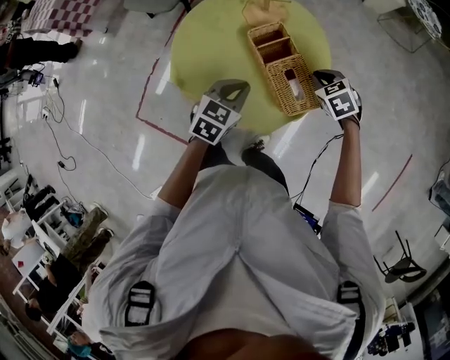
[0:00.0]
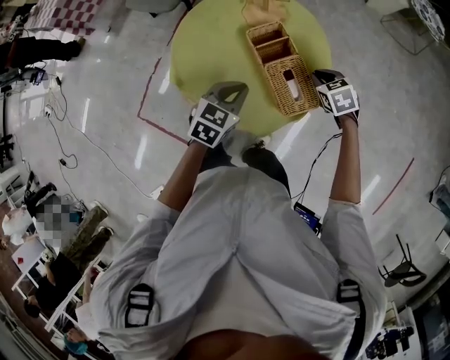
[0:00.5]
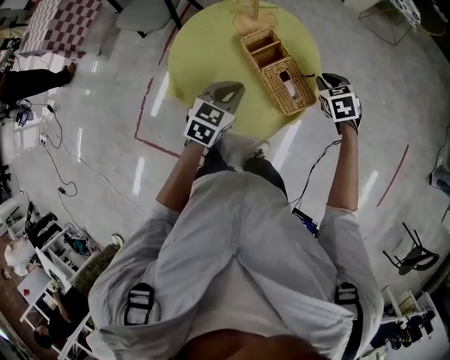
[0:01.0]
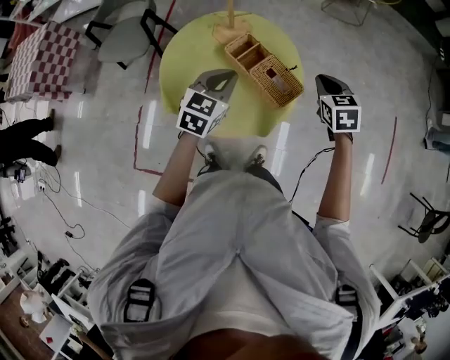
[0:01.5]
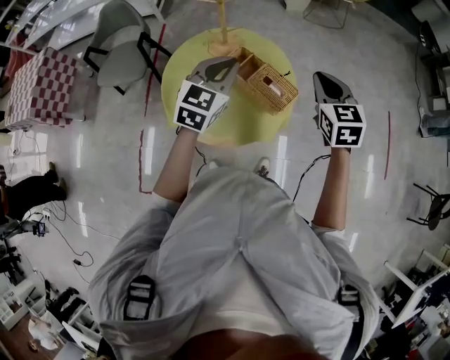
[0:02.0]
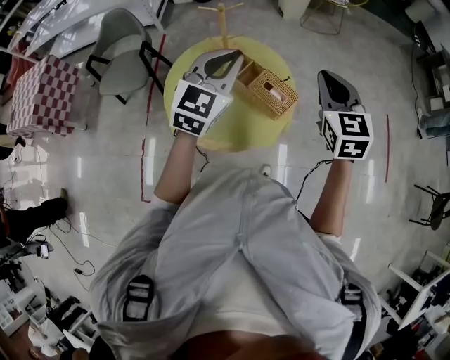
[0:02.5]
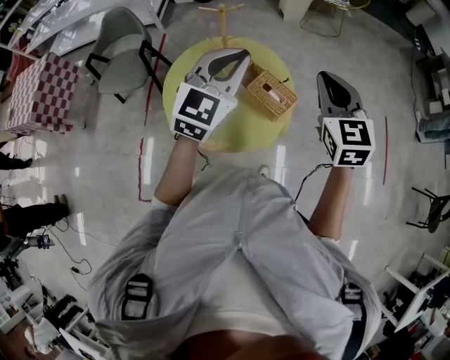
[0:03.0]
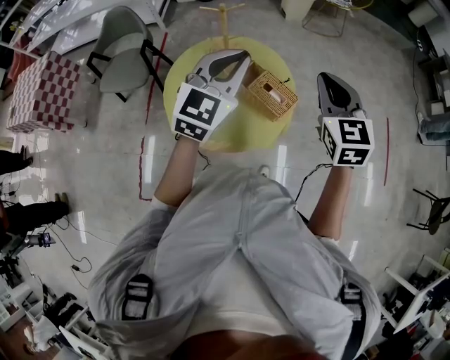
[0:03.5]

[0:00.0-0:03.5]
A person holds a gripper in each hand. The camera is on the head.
0:00.0 to 0:02.0: The grippers both shift upward by roughly 25 cm. The left gripper rotates about 30 degrees. Meanwhile the right gripper points its fingers about 30 degrees further upward.
0:02.0 to 0:03.5: The grippers both shift upward by some 10 cm.

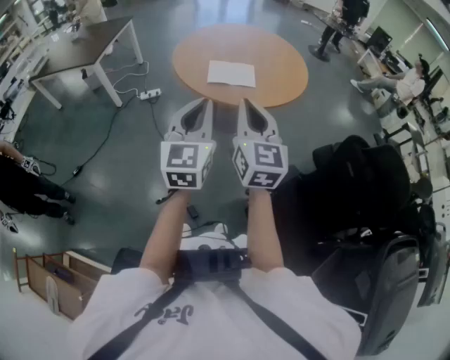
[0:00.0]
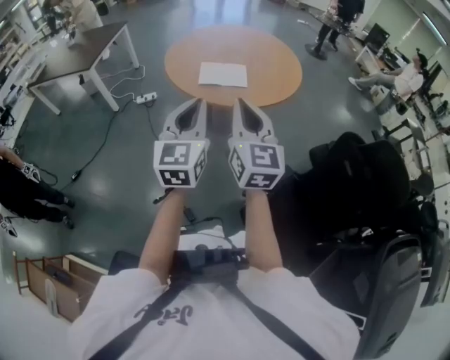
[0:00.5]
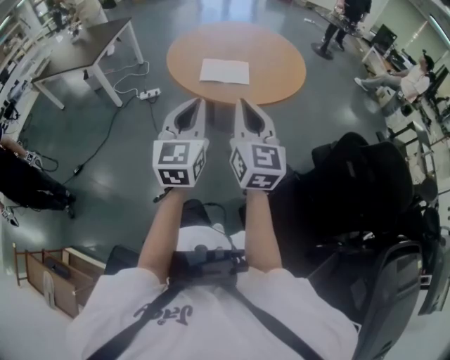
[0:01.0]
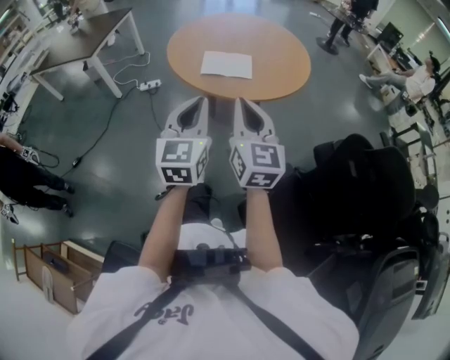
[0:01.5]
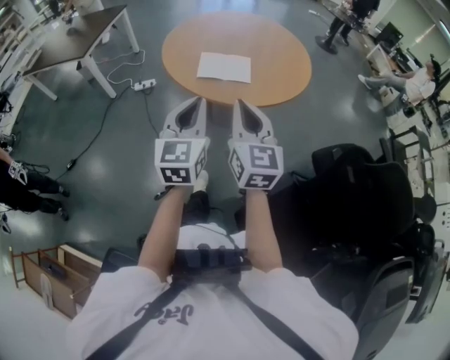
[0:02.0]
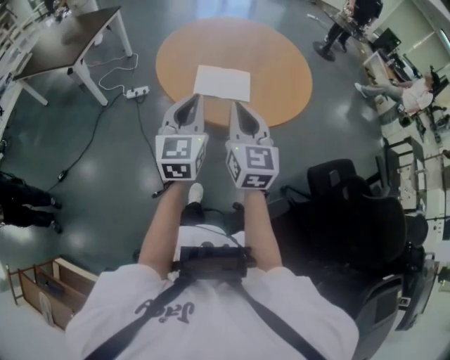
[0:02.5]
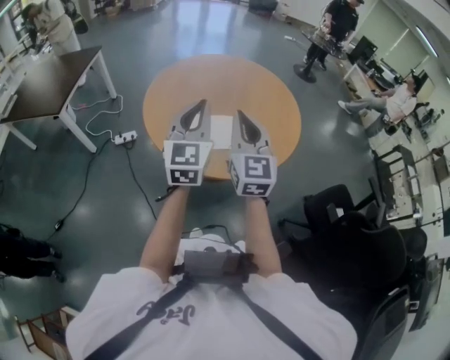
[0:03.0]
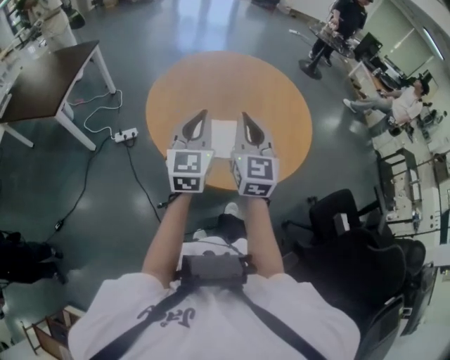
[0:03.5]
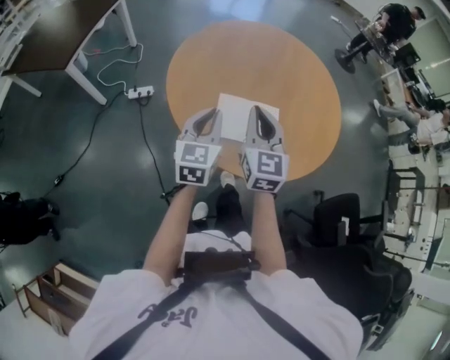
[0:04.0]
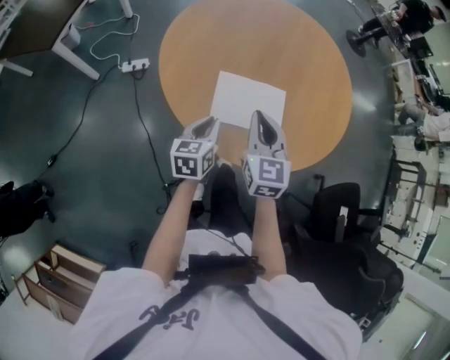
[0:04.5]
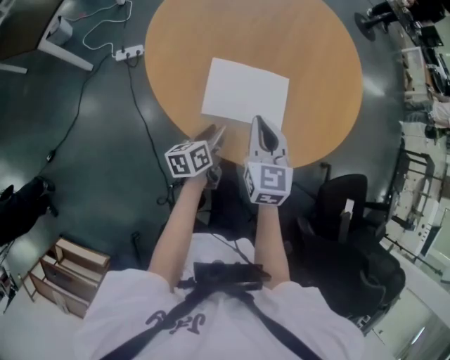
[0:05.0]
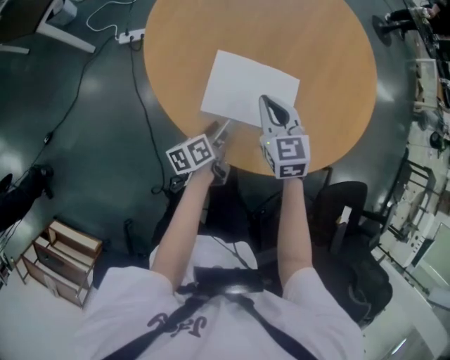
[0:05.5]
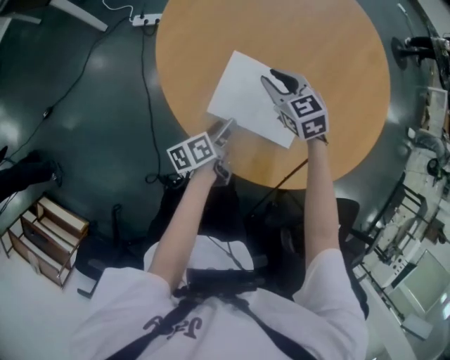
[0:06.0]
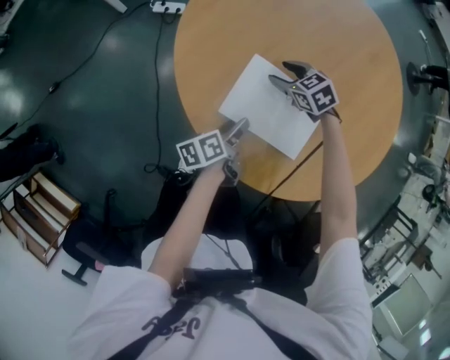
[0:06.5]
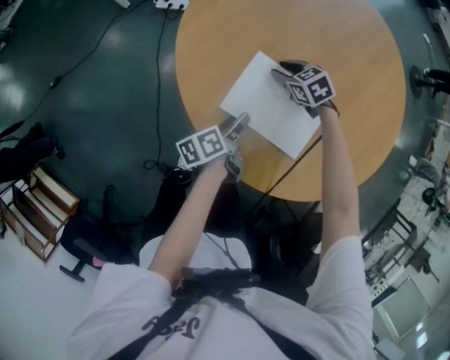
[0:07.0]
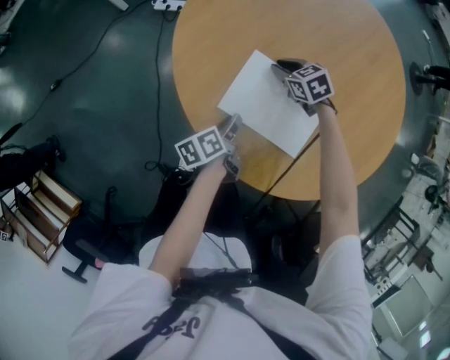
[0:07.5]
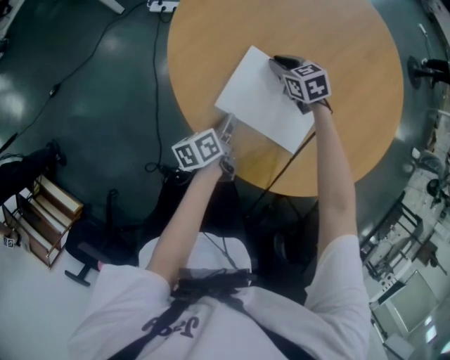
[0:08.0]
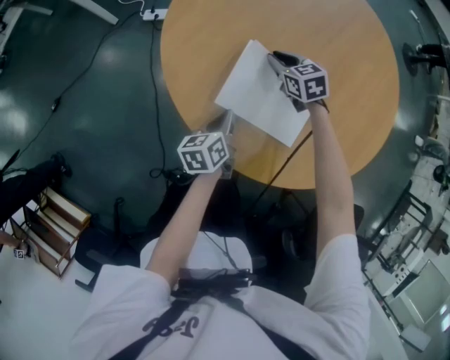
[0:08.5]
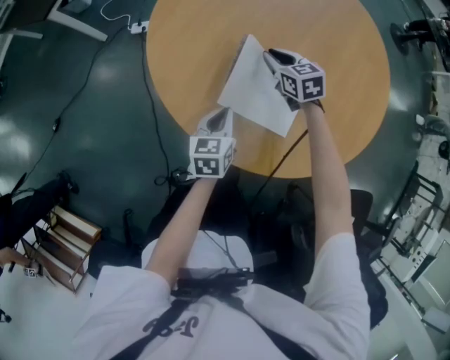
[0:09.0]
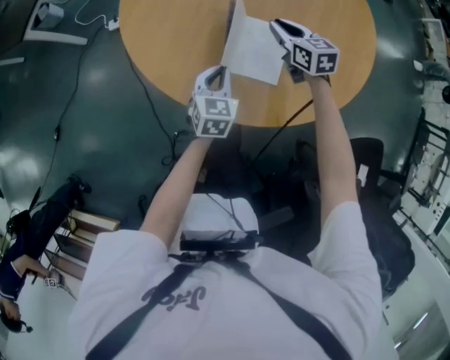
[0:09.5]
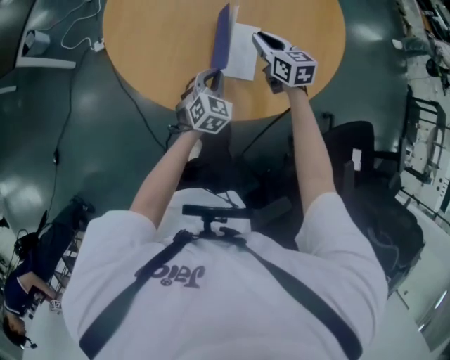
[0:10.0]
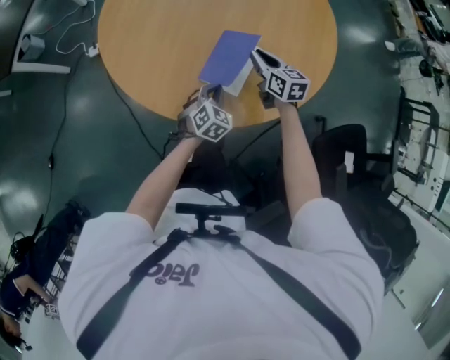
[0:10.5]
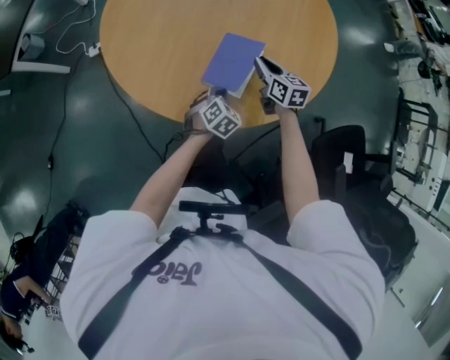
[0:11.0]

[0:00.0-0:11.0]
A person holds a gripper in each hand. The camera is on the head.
0:00.0 to 0:02.0: The right gripper shifts approximately 10 cm forward, downward and to the right; the left gripper travels forward and downward by roughly 10 cm.
0:02.0 to 0:03.5: Both grippers move forward, approximately 35 cm.
0:03.5 to 0:05.5: The right gripper is displaced downward and forward by roughly 30 cm, and tips its fingers downward by about 30 degrees. The left gripper heads downward, covering some 40 cm, twists some 70 degrees counterclockwise, seen from behind, and opens its fingers.
0:05.5 to 0:07.5: The right gripper travels downward by some 15 cm, changes its angle by approximately 40 degrees, and opens, then closes again, while the left gripper closes its fingers.
0:07.5 to 0:09.0: Both grippers travel together upward, roughly 5 cm. The left gripper rotates around the line of its fingers by some 50 degrees, clockwise from behind. The right gripper changes its angle by roughly 30 degrees.
0:09.0 to 0:11.0: The right gripper moves to the right and backward, roughly 20 cm, and turns by approximately 40 degrees. Meanwhile the left gripper shifts approximately 15 cm to the right and backward, and twists about 50 degrees clockwise, seen from behind.

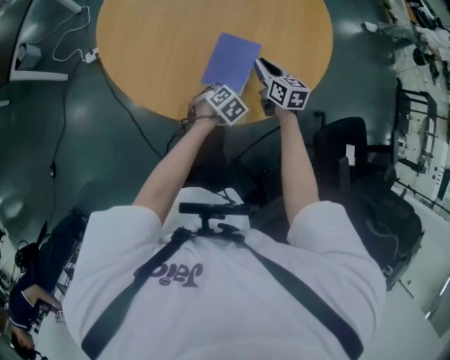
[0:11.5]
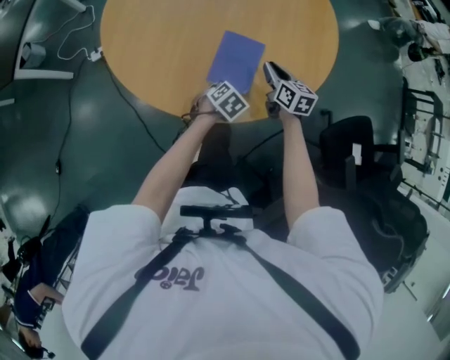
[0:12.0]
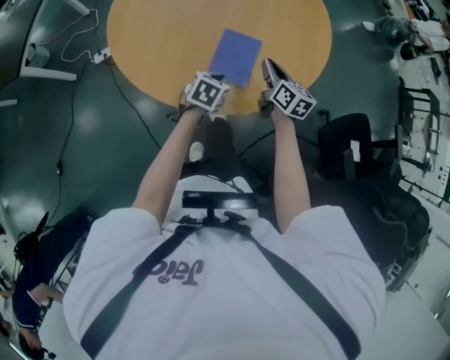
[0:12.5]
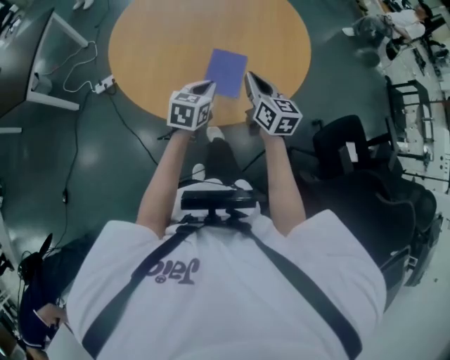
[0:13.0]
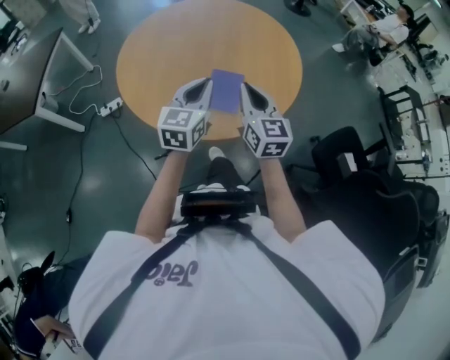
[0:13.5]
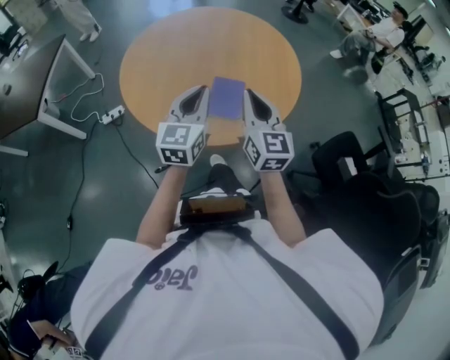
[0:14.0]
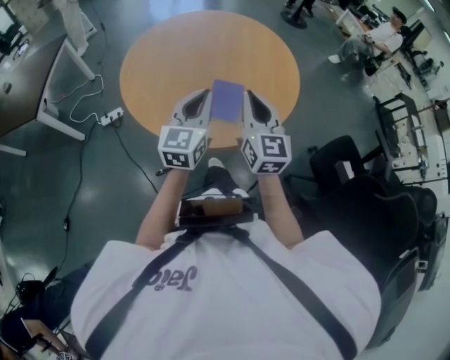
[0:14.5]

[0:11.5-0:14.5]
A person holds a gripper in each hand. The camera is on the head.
0:11.5 to 0:13.0: The right gripper shifts roughly 20 cm upward and backward, while the left gripper travels upward by about 20 cm, and points its fingers roughly 40 degrees further upward.
0:13.0 to 0:14.5: The right gripper moves upward and backward, roughly 15 cm, and turns by some 30 degrees. The left gripper goes roughly 20 cm upward, and points its fingers approximately 30 degrees further upward.

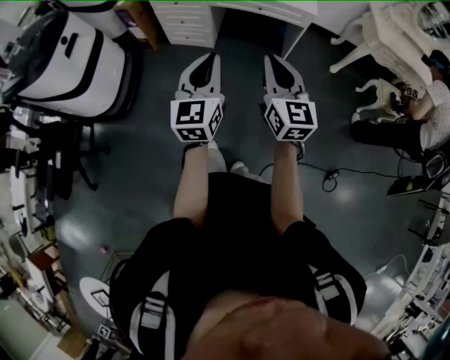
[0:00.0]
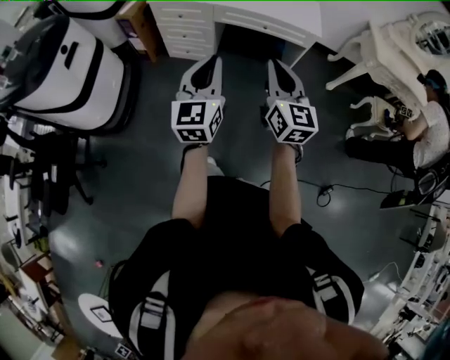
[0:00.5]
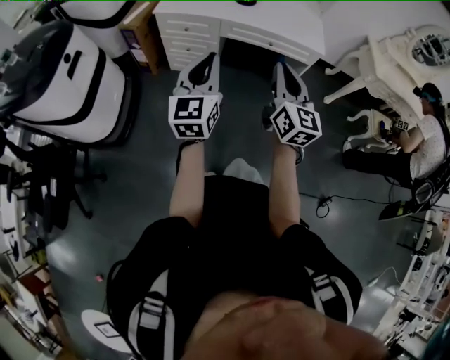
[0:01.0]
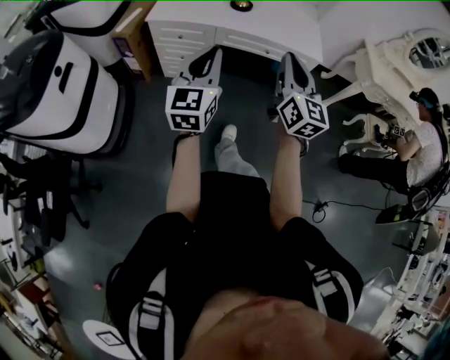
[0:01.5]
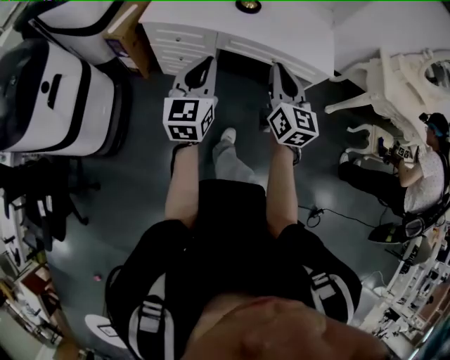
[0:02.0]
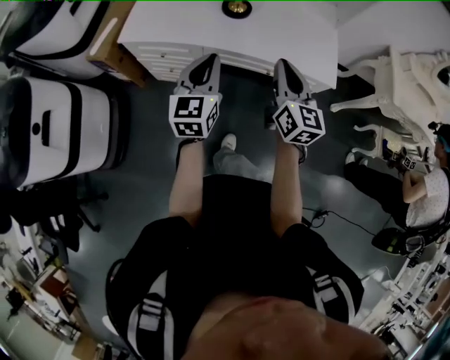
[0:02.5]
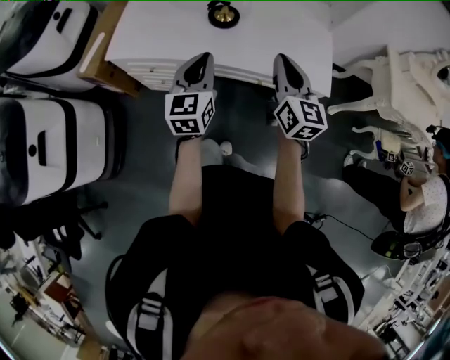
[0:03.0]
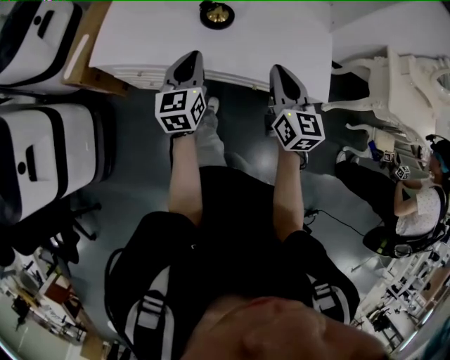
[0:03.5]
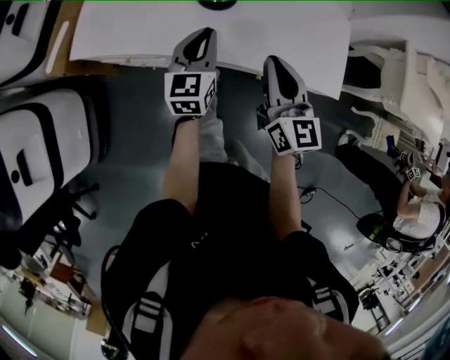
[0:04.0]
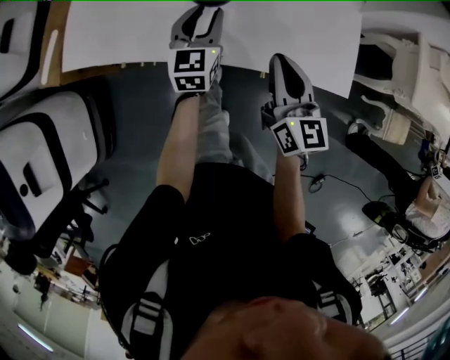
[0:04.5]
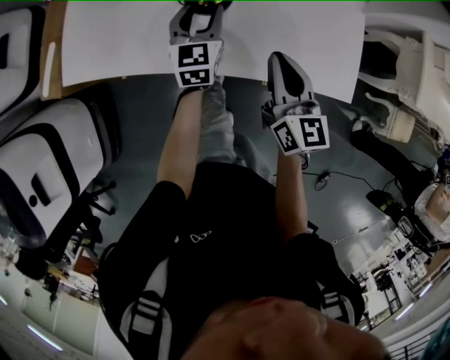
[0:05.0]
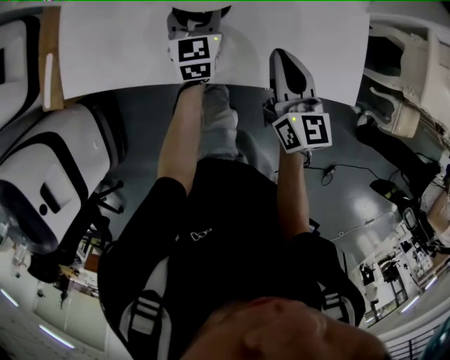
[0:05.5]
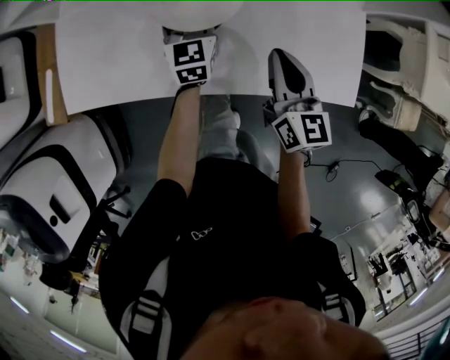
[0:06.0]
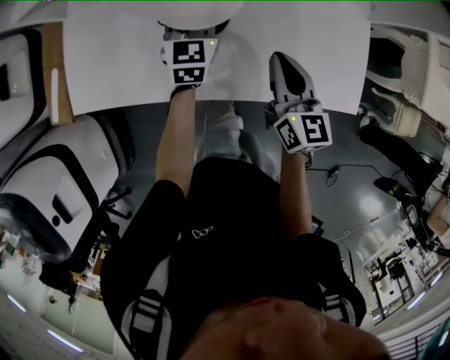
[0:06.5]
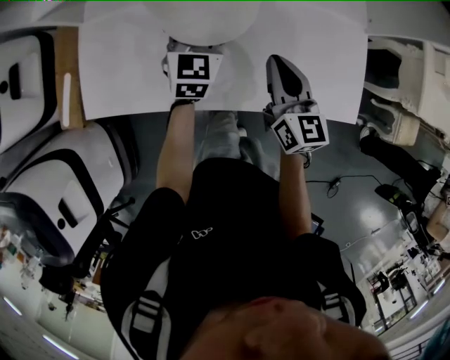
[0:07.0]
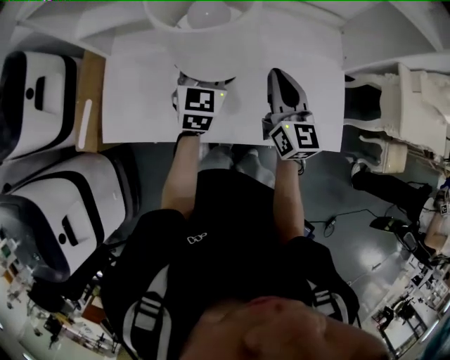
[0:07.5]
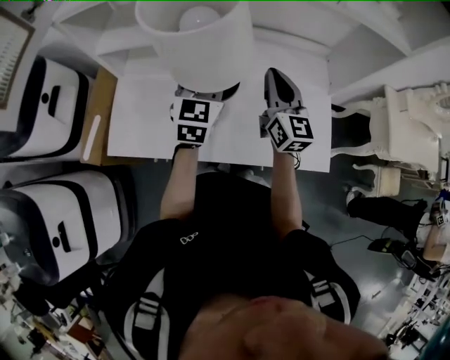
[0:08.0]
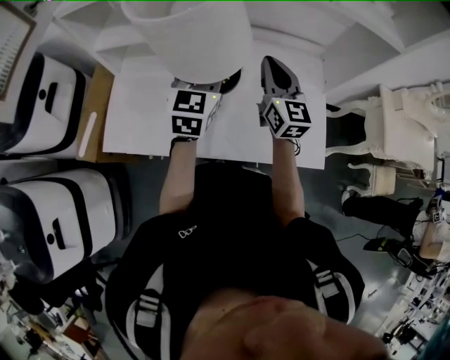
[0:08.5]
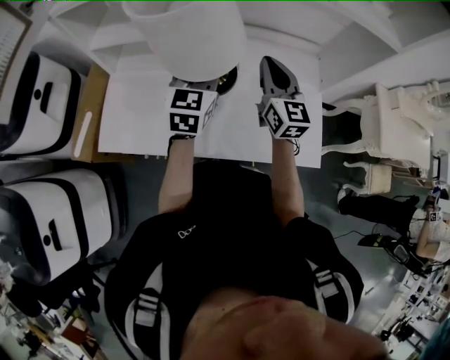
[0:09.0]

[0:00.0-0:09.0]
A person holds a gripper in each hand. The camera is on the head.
0:00.0 to 0:02.0: Both grippers move forward, approximately 35 cm.
0:02.0 to 0:04.5: The grippers both shift forward and downward by some 40 cm. The left gripper opens its fingers.
0:04.5 to 0:07.0: Both grippers move forward, some 10 cm.
0:07.0 to 0:09.0: The right gripper shifts approximately 20 cm upward and forward, and swivels some 20 degrees. The left gripper travels upward by approximately 20 cm.
